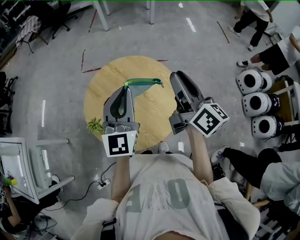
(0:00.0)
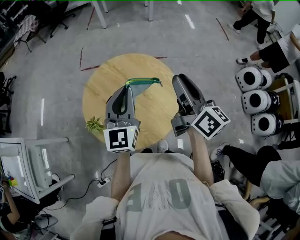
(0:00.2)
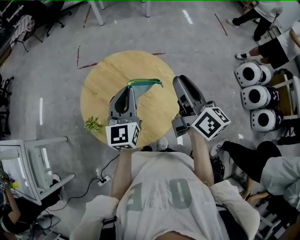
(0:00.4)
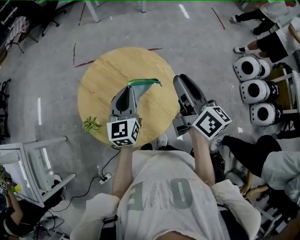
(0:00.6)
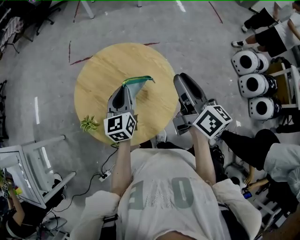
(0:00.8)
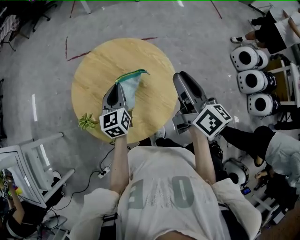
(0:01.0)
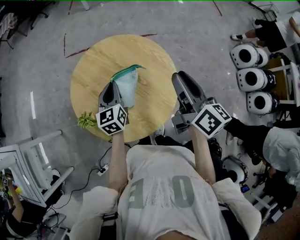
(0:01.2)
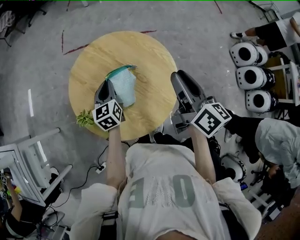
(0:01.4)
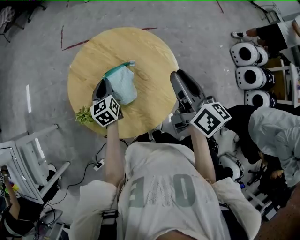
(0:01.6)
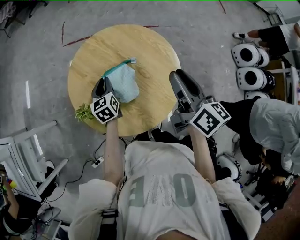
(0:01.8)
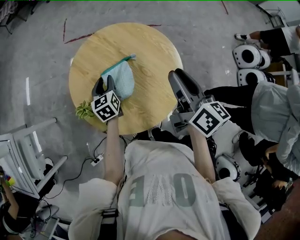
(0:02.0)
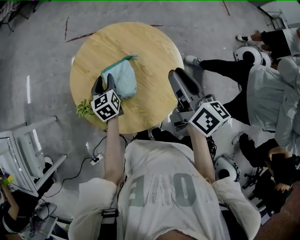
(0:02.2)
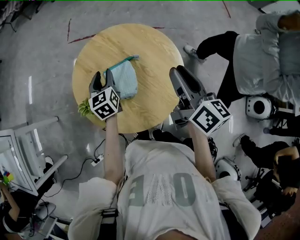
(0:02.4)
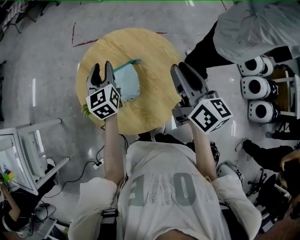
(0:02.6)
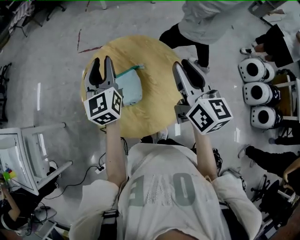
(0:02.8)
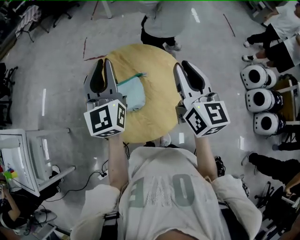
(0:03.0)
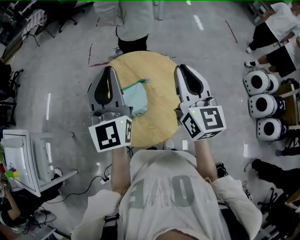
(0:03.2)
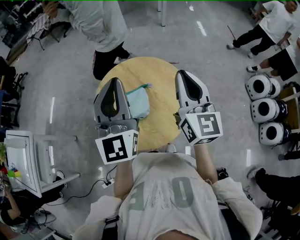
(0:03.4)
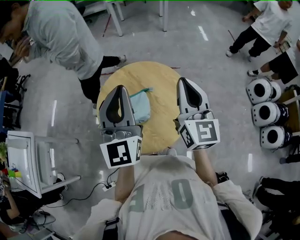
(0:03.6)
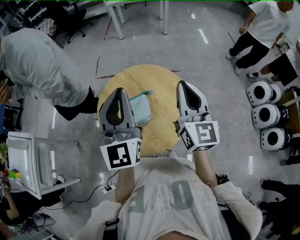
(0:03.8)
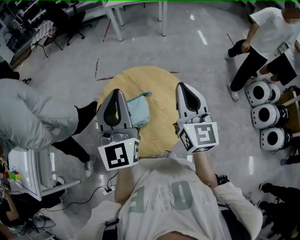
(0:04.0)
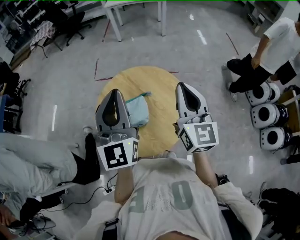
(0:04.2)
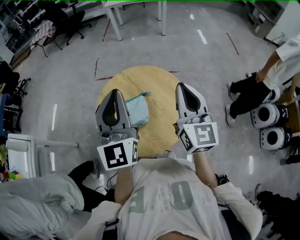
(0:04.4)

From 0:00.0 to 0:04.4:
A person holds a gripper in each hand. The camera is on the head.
From 0:00.0 to 0:01.4: The left gripper travels downward by roughly 25 cm, and tips its fingers downward by some 30 degrees; the right gripper travels downward by roughly 10 cm.
From 0:01.4 to 0:03.0: The left gripper moves upward, approximately 30 cm, and angles its fingers upward, by some 30 degrees. The right gripper is displaced upward by approximately 10 cm, and rotates some 30 degrees.
From 0:03.0 to 0:04.4: The left gripper is displaced backward and upward by about 10 cm.

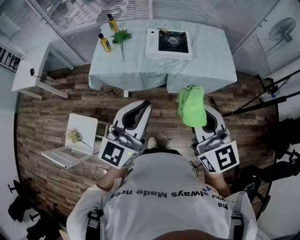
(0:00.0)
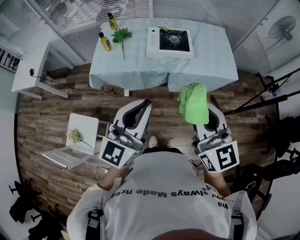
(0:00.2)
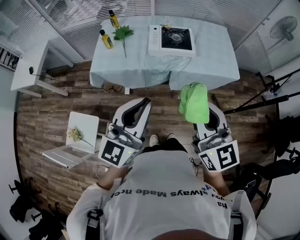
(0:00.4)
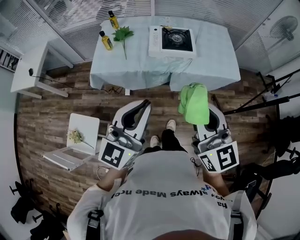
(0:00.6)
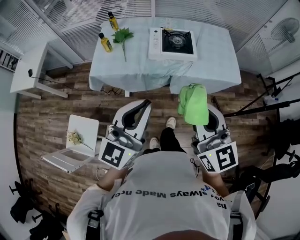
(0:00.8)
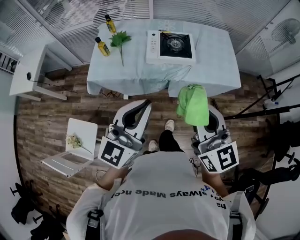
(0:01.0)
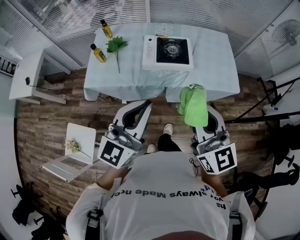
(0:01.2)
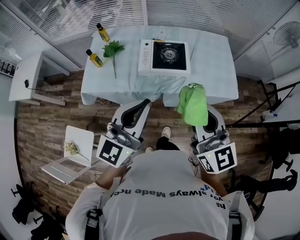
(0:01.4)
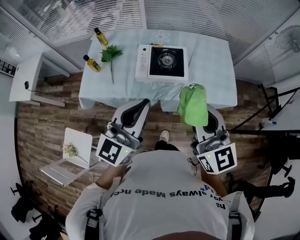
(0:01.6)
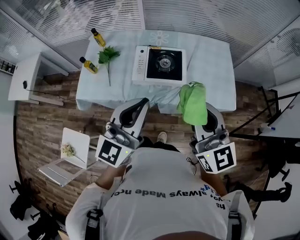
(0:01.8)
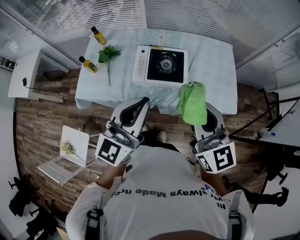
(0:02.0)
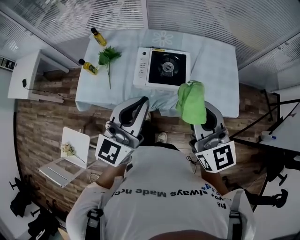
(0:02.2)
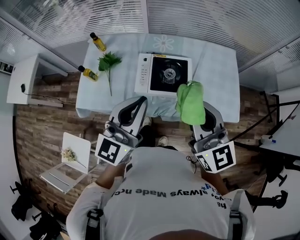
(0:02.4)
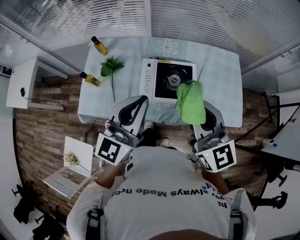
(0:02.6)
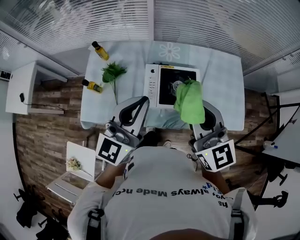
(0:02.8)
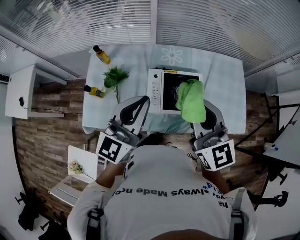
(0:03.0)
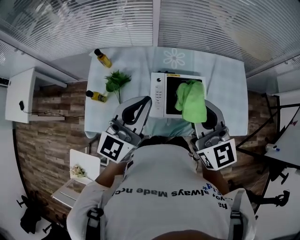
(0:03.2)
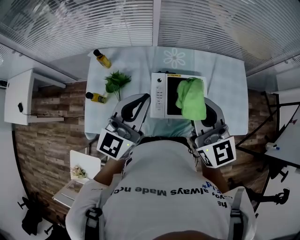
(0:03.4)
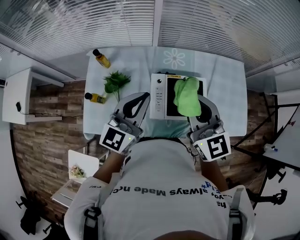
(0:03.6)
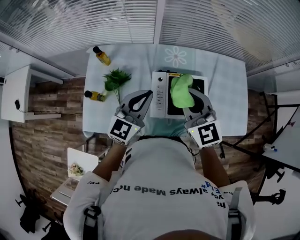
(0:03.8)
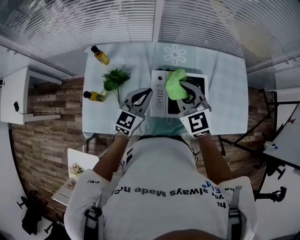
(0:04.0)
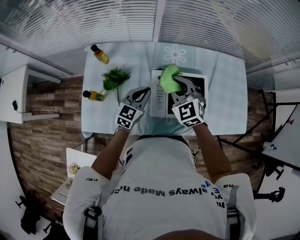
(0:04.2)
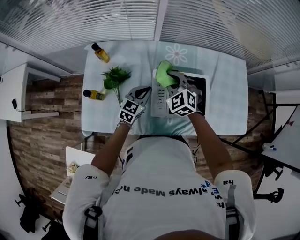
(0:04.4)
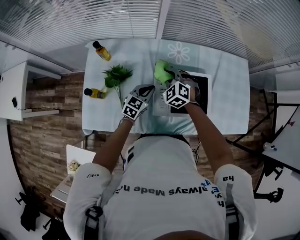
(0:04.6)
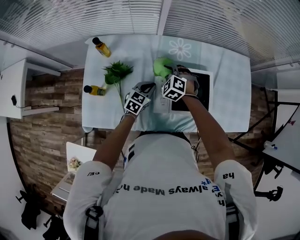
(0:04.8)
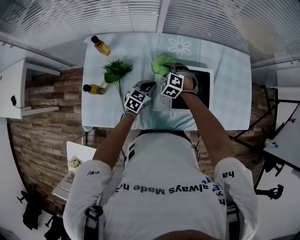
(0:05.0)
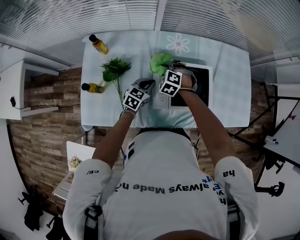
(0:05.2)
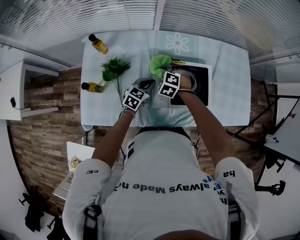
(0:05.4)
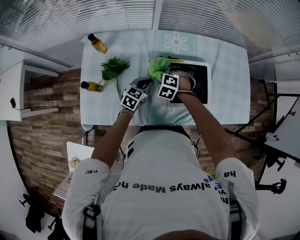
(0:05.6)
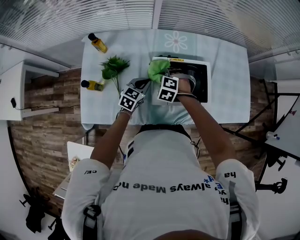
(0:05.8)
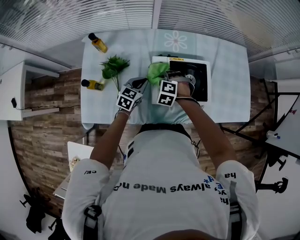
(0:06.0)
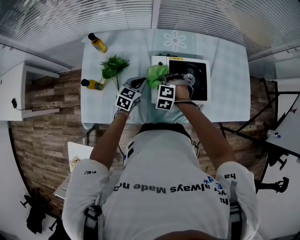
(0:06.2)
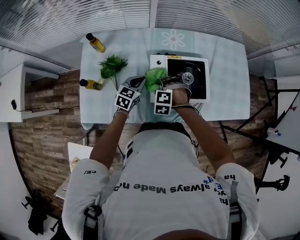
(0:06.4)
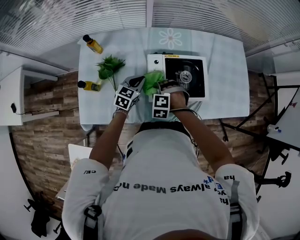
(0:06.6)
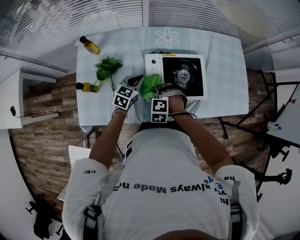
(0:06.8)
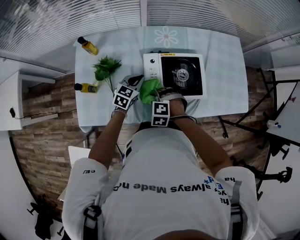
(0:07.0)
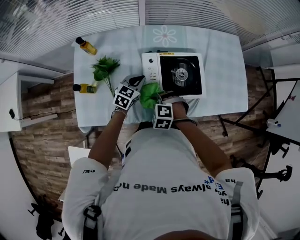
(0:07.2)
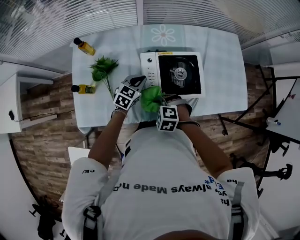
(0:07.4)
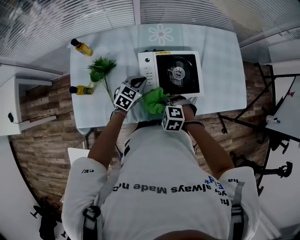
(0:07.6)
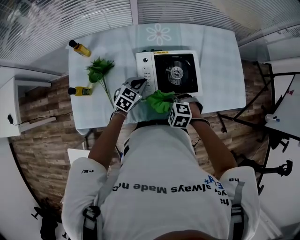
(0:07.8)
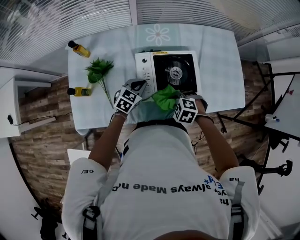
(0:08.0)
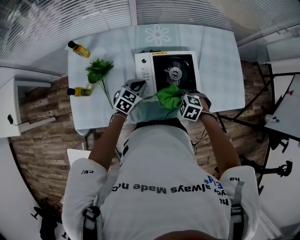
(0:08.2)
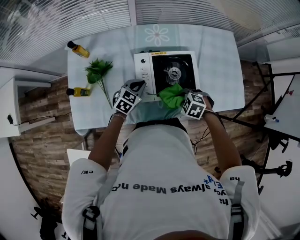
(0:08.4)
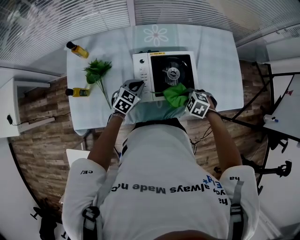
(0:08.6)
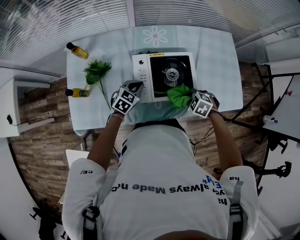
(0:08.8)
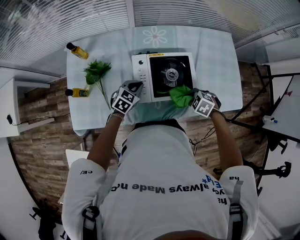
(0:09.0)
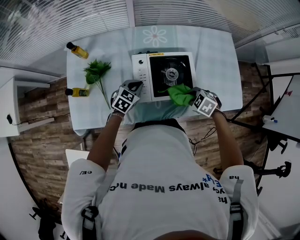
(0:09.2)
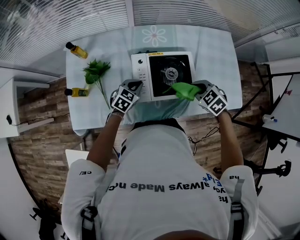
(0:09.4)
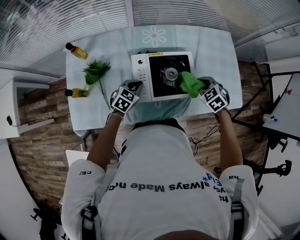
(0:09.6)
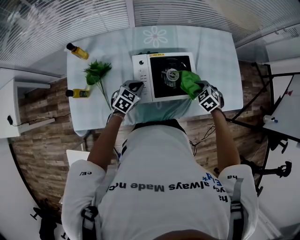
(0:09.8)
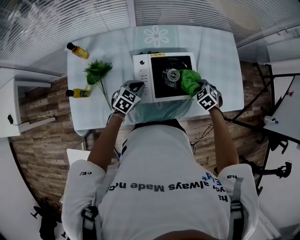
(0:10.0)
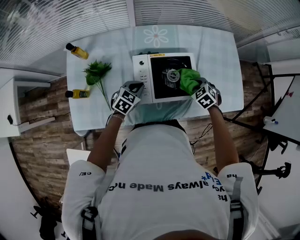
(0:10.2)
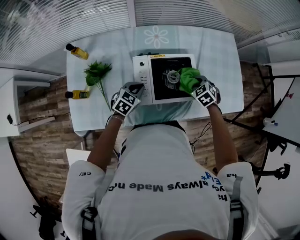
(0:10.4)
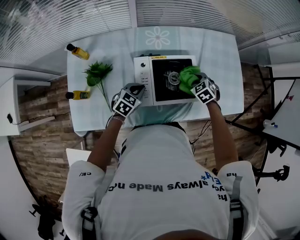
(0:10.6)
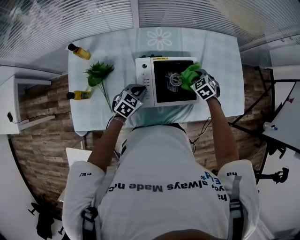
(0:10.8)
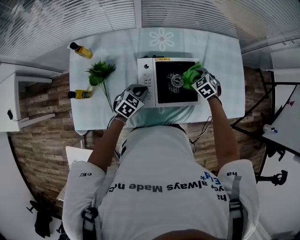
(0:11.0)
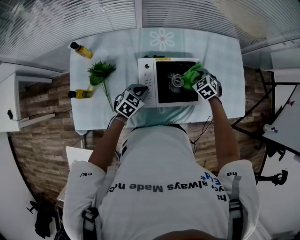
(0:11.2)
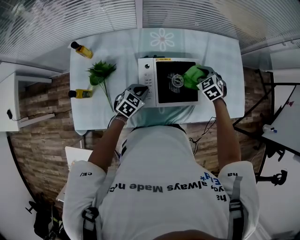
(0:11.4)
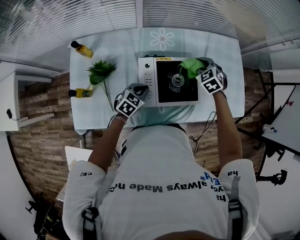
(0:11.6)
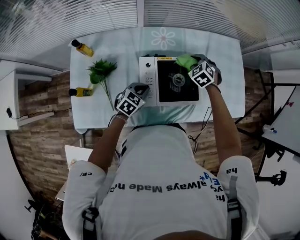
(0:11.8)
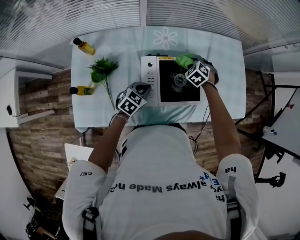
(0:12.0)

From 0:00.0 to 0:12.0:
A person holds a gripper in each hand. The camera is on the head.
From 0:00.0 to 0:01.6: The two grippers go roughly 25 cm forward.
From 0:01.6 to 0:03.0: Both grippers travel together forward and to the left, about 25 cm.
From 0:03.0 to 0:04.4: The left gripper heads downward, covering about 30 cm, and tilts its fingers approximately 30 degrees downward; the right gripper is displaced downward, forward and to the left by roughly 30 cm, and tilts its fingers about 30 degrees downward.
From 0:04.4 to 0:06.0: The right gripper shifts some 15 cm downward and backward, and tilts its fingers approximately 30 degrees downward, while the left gripper shifts about 5 cm downward.
From 0:06.0 to 0:07.6: The left gripper travels to the right by roughly 5 cm. Meanwhile the right gripper travels backward by some 15 cm.
From 0:07.6 to 0:09.0: The right gripper moves to the right, about 20 cm.
From 0:09.0 to 0:10.4: The right gripper changes place by about 10 cm, and turns by about 30 degrees.
From 0:10.4 to 0:12.0: The right gripper shifts some 15 cm forward and to the left.

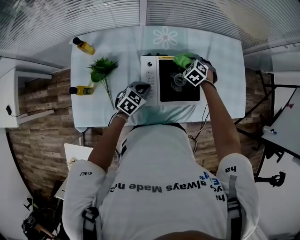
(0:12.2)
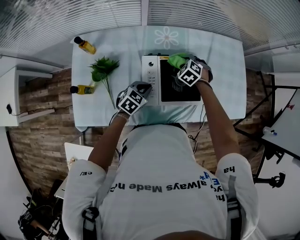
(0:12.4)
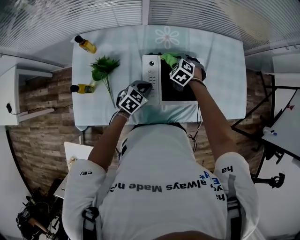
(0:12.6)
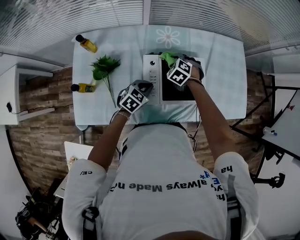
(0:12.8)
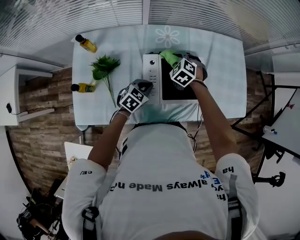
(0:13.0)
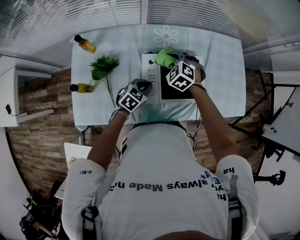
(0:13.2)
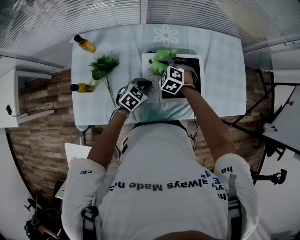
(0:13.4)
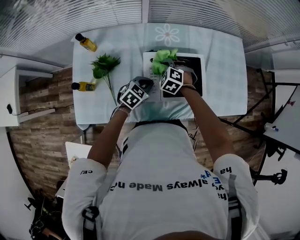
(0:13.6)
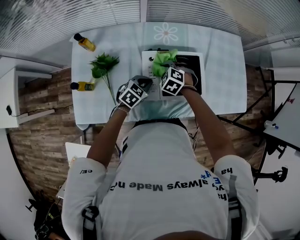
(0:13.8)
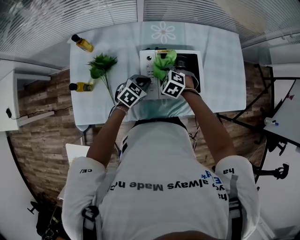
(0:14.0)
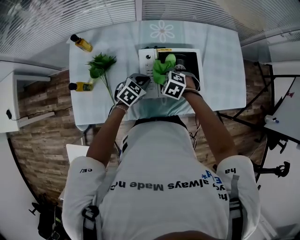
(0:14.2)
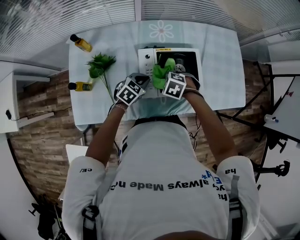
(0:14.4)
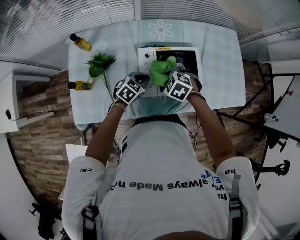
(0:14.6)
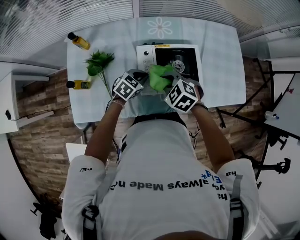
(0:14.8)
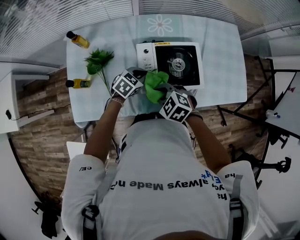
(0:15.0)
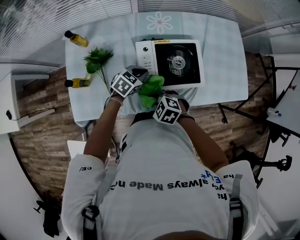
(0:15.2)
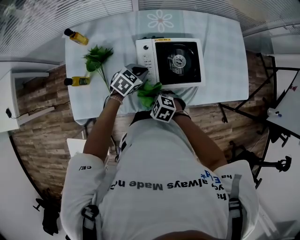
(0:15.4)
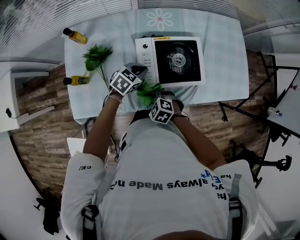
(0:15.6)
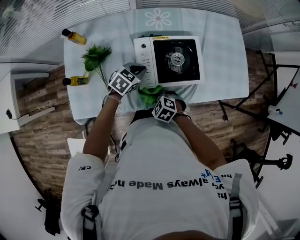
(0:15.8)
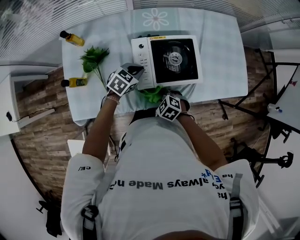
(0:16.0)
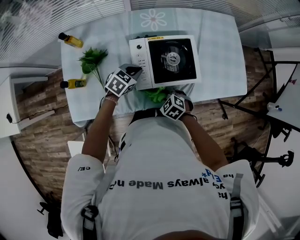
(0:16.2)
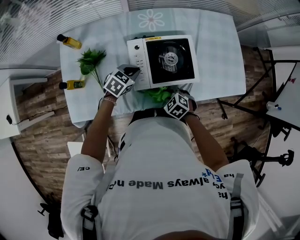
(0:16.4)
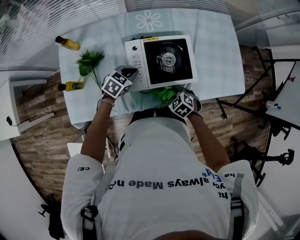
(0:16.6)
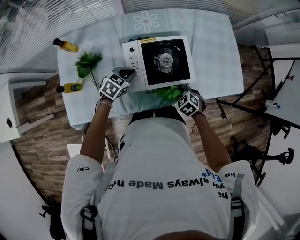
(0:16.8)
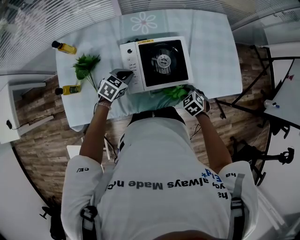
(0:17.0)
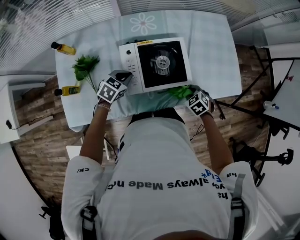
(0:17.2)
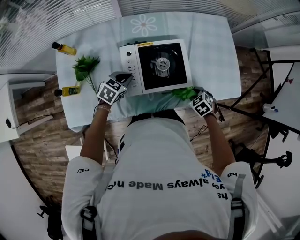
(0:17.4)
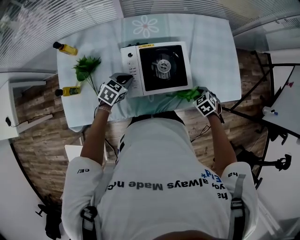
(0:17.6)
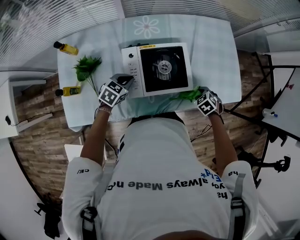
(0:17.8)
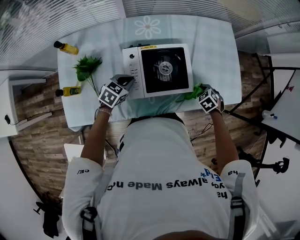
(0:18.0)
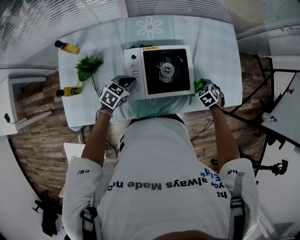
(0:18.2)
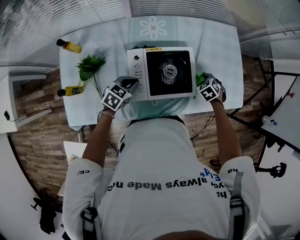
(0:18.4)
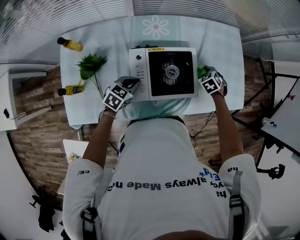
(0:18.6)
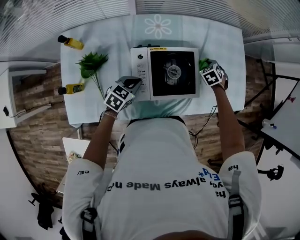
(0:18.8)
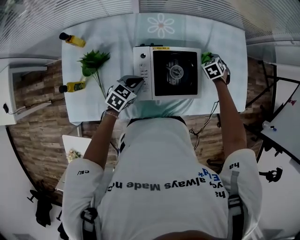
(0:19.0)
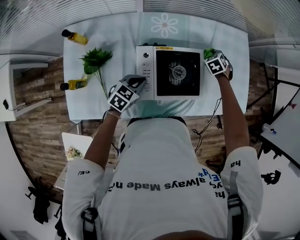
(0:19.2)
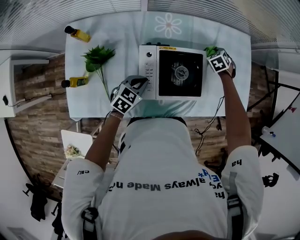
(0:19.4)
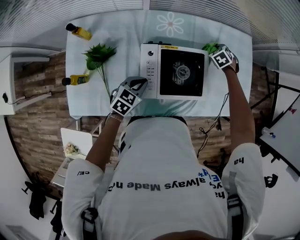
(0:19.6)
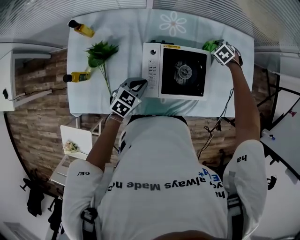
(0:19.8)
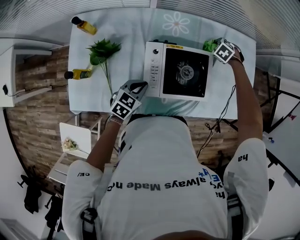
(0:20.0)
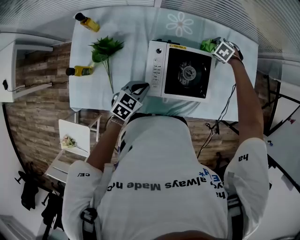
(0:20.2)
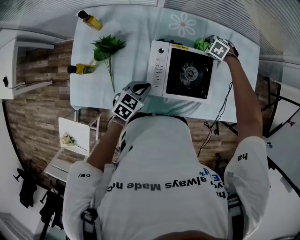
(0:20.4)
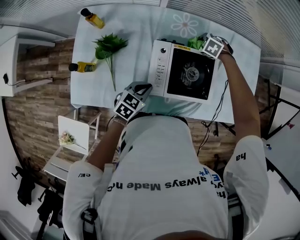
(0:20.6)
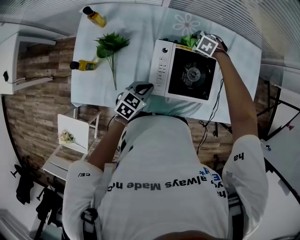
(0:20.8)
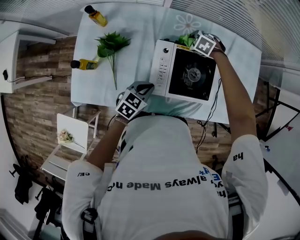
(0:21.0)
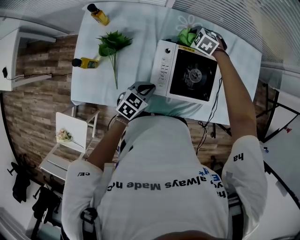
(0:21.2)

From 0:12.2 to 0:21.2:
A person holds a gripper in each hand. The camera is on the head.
From 0:12.2 to 0:13.8: The right gripper travels backward and to the left by roughly 15 cm.
From 0:13.8 to 0:15.2: The right gripper goes upward and returns, approximately 10 cm each way, and turns by some 20 degrees.
From 0:15.2 to 0:16.6: The right gripper ends up some 15 cm from where it was, and changes its angle by about 20 degrees.
From 0:16.6 to 0:18.2: The right gripper travels to the right and forward by approximately 20 cm.
From 0:18.2 to 0:19.8: The right gripper is displaced forward and to the left by about 25 cm.
From 0:19.8 to 0:21.2: The right gripper moves roughly 25 cm, and rotates roughly 30 degrees.
